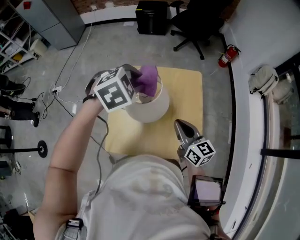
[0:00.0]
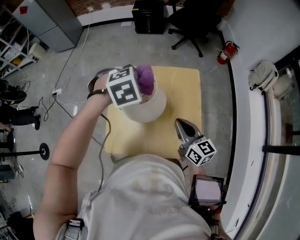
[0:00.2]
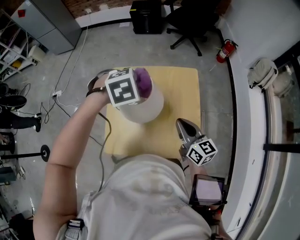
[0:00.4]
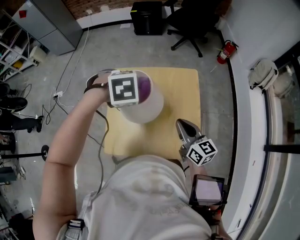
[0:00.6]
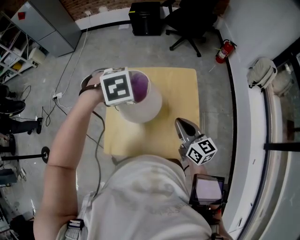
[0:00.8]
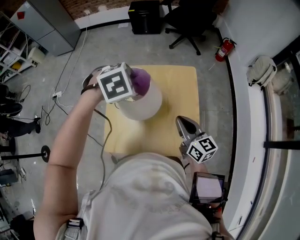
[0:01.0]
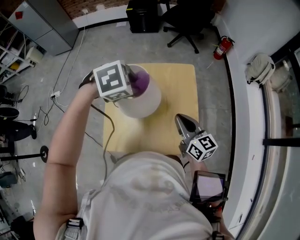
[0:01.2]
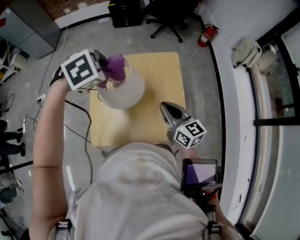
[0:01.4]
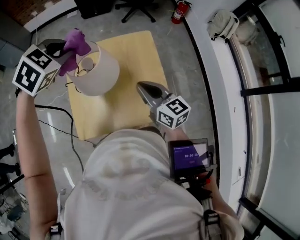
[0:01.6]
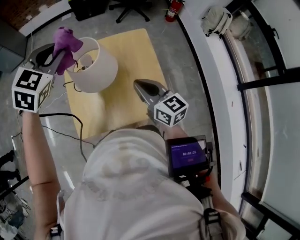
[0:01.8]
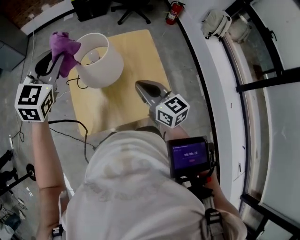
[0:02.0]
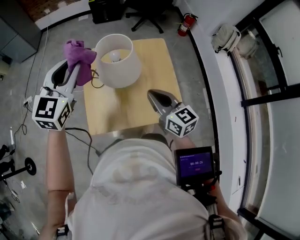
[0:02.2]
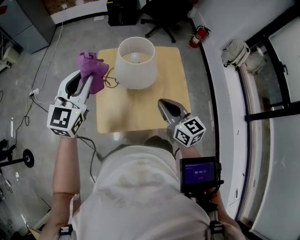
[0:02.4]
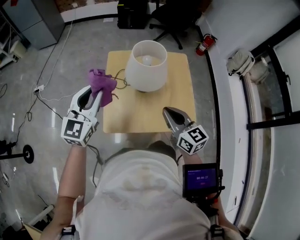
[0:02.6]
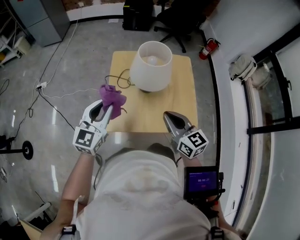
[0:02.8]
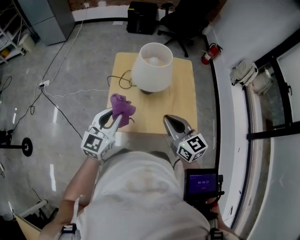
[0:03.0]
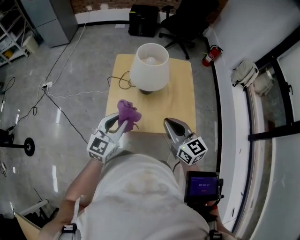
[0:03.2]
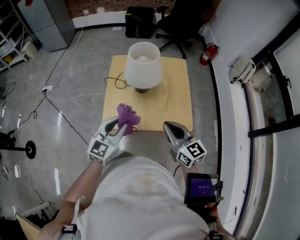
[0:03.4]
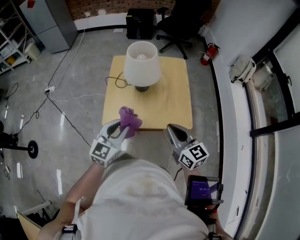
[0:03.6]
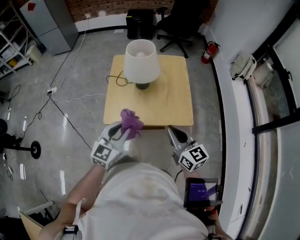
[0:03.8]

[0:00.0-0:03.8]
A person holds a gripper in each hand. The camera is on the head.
0:00.0 to 0:01.2: The left gripper turns by approximately 20 degrees.
0:01.2 to 0:02.6: The right gripper moves to the left and backward, roughly 15 cm. Meanwhile the left gripper is displaced to the left and backward by some 25 cm, and angles its fingers upward, by some 60 degrees.
0:02.6 to 0:03.8: The left gripper moves backward, to the right and downward, about 25 cm, while the right gripper moves backward, approximately 15 cm.

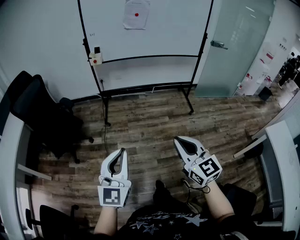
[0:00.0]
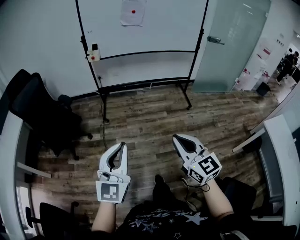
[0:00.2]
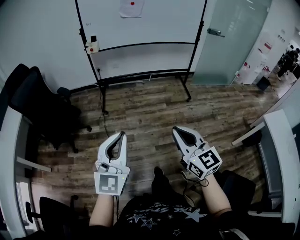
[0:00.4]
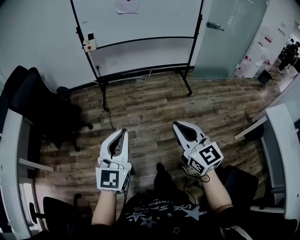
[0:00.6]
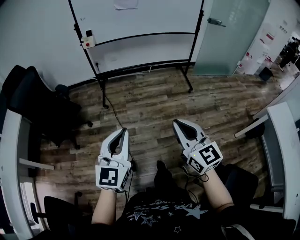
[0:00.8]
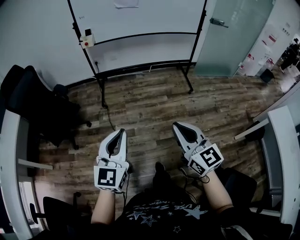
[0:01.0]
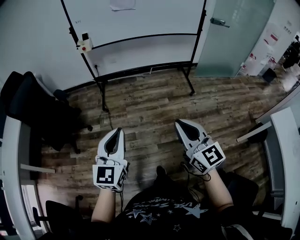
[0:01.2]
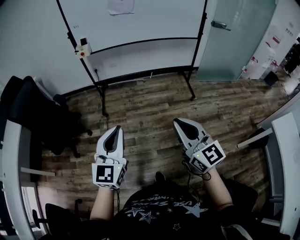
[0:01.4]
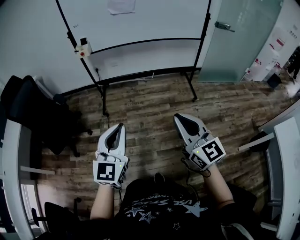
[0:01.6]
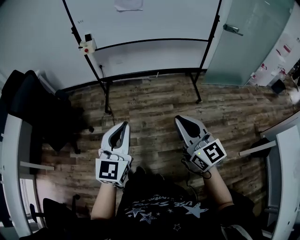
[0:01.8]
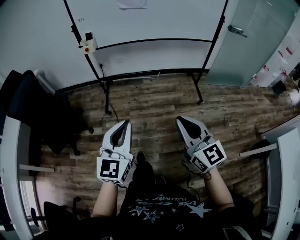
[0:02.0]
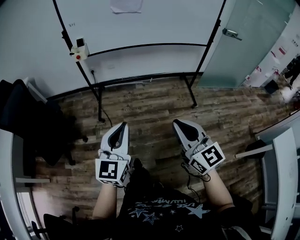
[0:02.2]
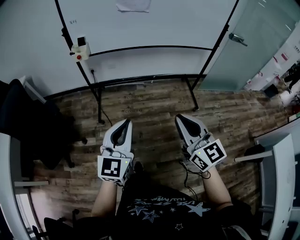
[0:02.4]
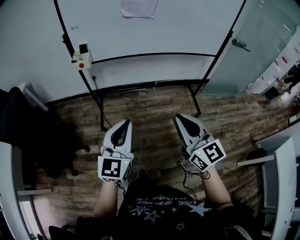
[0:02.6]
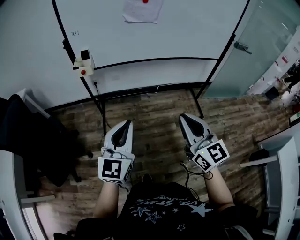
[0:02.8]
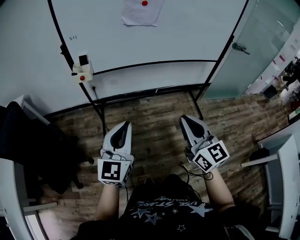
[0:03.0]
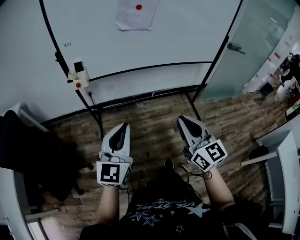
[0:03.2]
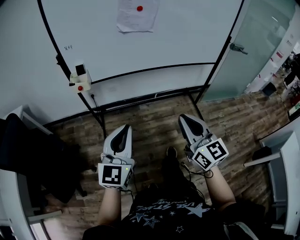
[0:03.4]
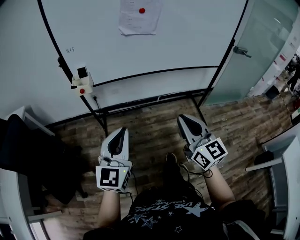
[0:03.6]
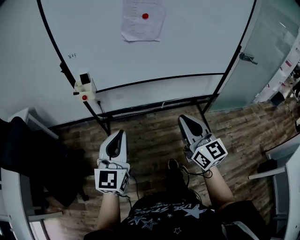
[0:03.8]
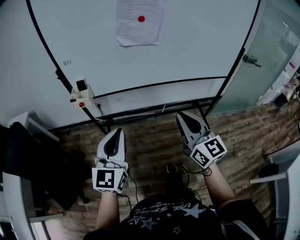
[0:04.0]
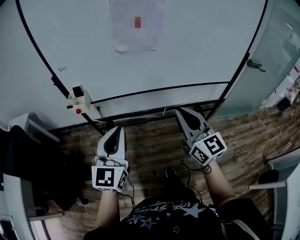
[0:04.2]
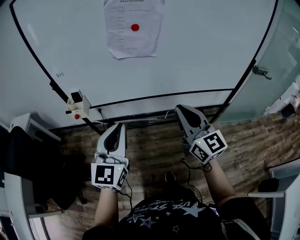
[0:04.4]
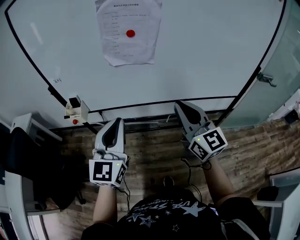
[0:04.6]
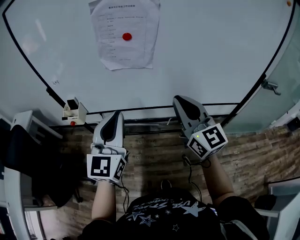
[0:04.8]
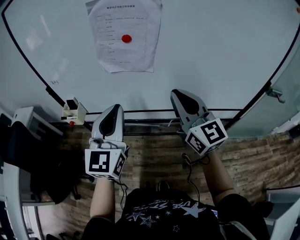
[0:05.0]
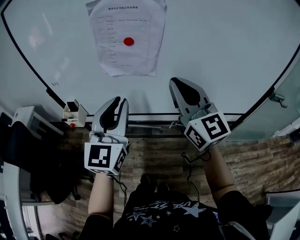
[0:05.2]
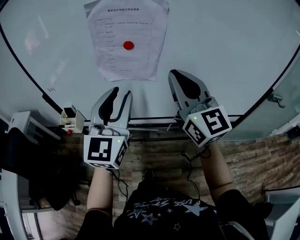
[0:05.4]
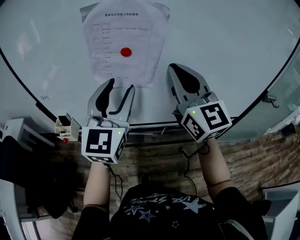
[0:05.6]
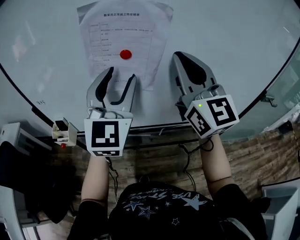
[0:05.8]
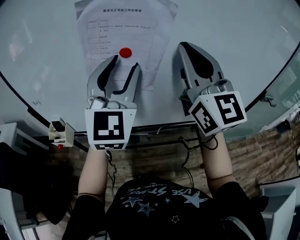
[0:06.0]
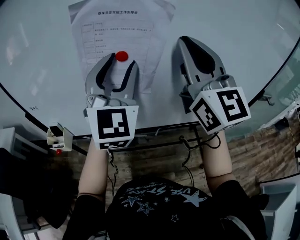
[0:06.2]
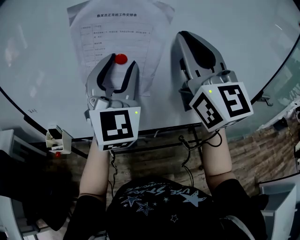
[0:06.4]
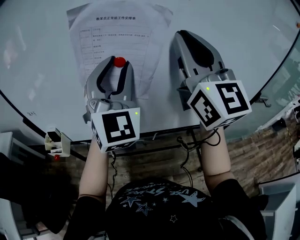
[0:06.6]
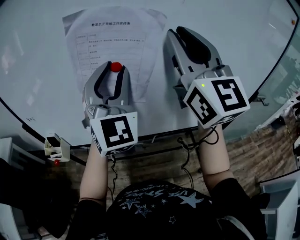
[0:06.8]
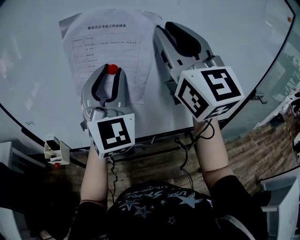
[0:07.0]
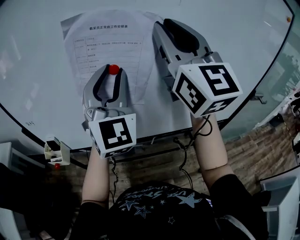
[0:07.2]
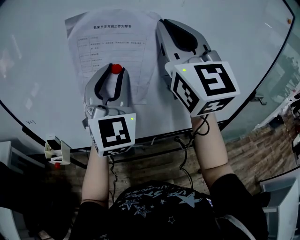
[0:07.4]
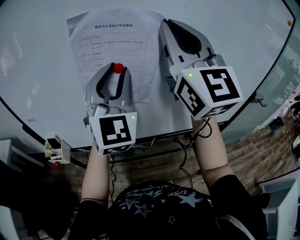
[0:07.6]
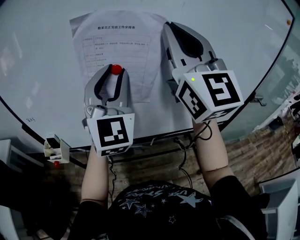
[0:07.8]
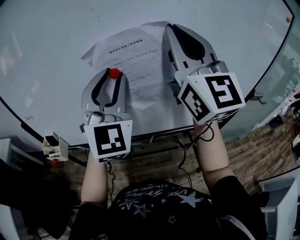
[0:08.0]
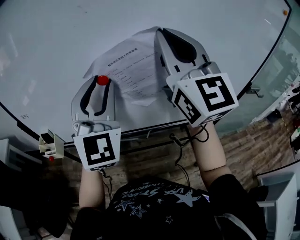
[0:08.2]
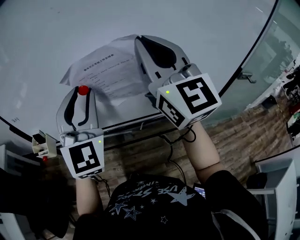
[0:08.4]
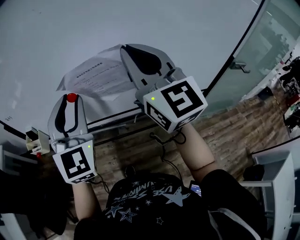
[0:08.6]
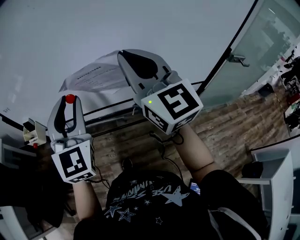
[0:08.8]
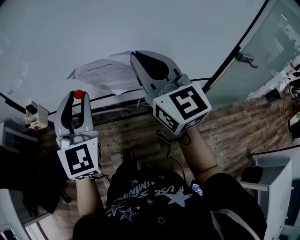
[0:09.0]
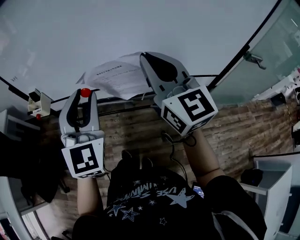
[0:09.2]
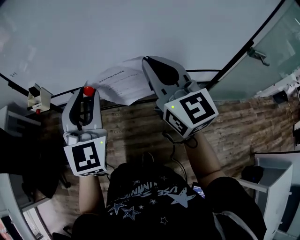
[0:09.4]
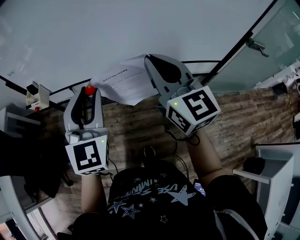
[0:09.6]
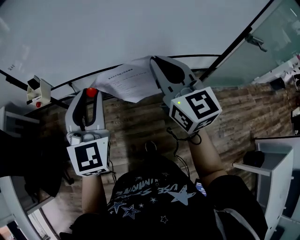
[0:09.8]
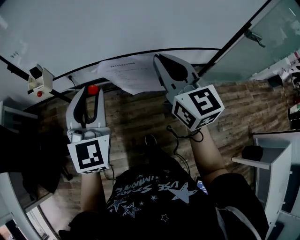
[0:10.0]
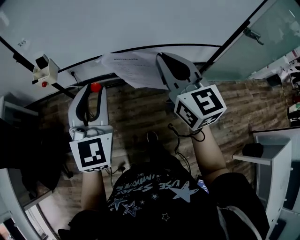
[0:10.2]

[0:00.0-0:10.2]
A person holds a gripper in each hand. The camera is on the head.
0:00.0 to 0:01.4: Both grippers travel together forward and to the right, about 15 cm.
0:01.4 to 0:03.0: The two grippers go roughly 35 cm forward.
0:03.0 to 0:04.4: The two grippers go approximately 25 cm forward.
0:04.4 to 0:05.8: The right gripper travels forward and upward by roughly 30 cm, while the left gripper moves forward, upward and to the right, roughly 30 cm, and opens its fingers.
0:05.8 to 0:07.2: The right gripper moves upward, roughly 10 cm. Meanwhile the left gripper ends up some 5 cm from where it was, and closes.
0:07.2 to 0:08.8: The left gripper heads backward and downward, covering approximately 15 cm. Meanwhile the right gripper shifts some 20 cm downward and backward.
0:08.8 to 0:10.2: The left gripper goes about 20 cm backward, to the left and downward. The right gripper heads backward, downward and to the left, covering roughly 20 cm.

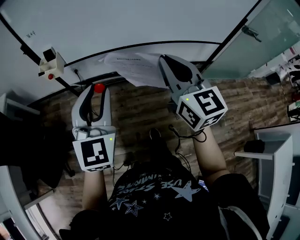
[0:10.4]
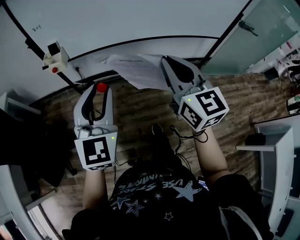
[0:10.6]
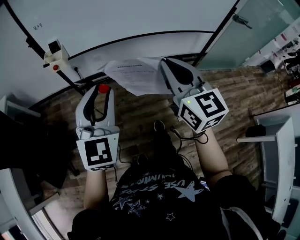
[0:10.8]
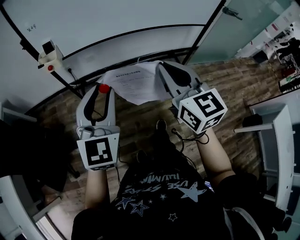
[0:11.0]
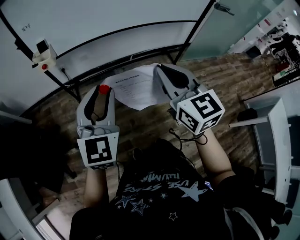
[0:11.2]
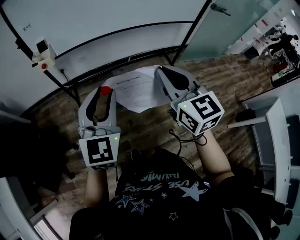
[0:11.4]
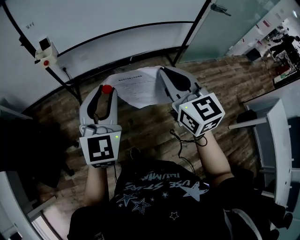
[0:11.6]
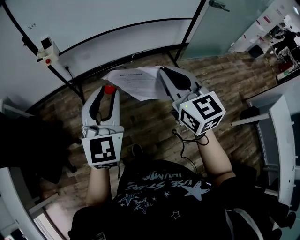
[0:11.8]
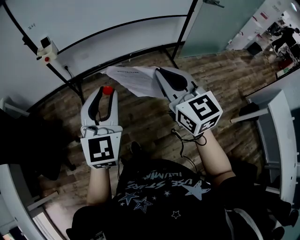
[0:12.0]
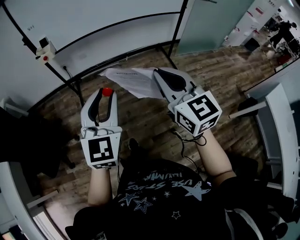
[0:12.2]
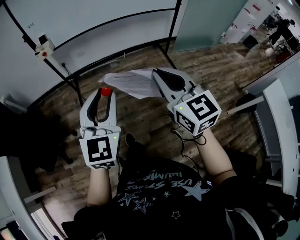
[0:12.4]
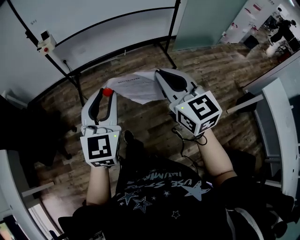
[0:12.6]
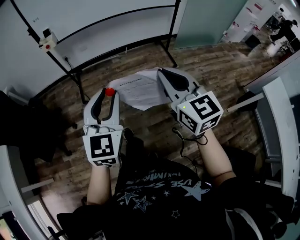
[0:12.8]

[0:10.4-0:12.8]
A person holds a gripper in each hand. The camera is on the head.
0:10.4 to 0:11.6: The two grippers go roughly 20 cm backward.
0:11.6 to 0:12.8: Both grippers travel together backward, approximately 25 cm.

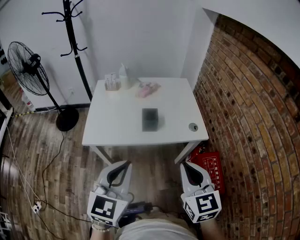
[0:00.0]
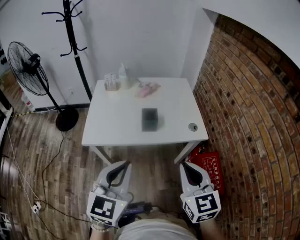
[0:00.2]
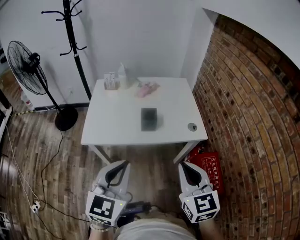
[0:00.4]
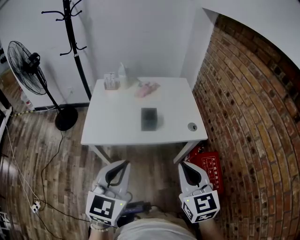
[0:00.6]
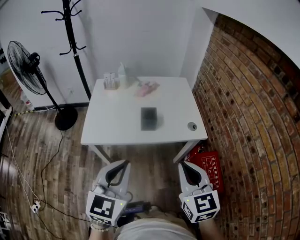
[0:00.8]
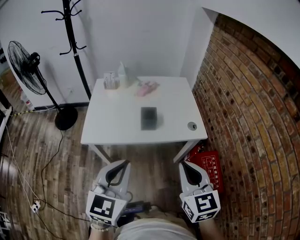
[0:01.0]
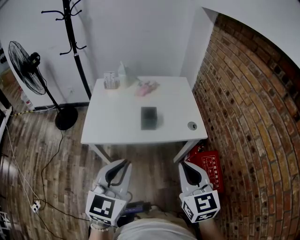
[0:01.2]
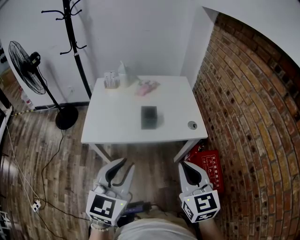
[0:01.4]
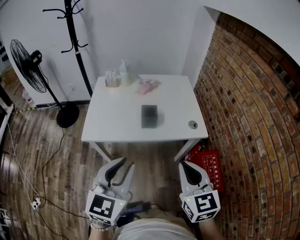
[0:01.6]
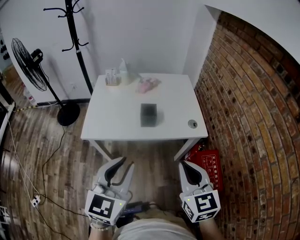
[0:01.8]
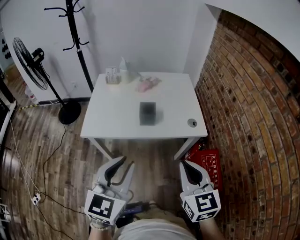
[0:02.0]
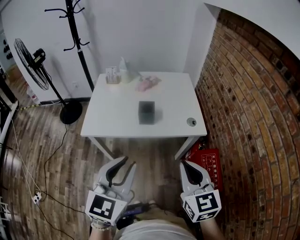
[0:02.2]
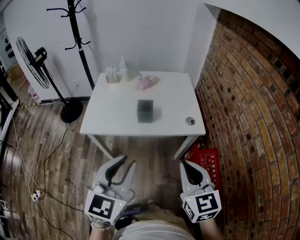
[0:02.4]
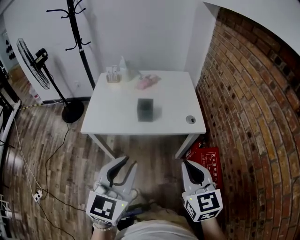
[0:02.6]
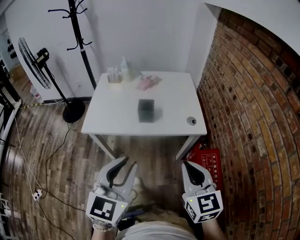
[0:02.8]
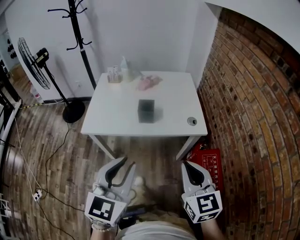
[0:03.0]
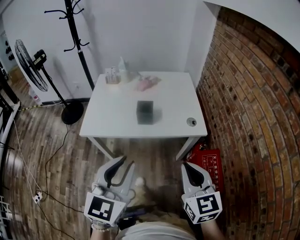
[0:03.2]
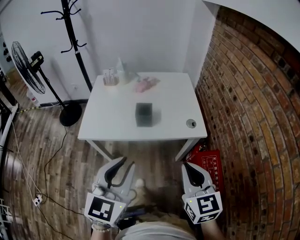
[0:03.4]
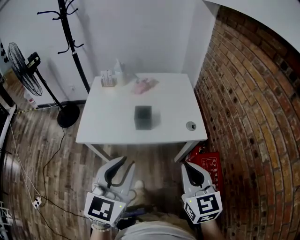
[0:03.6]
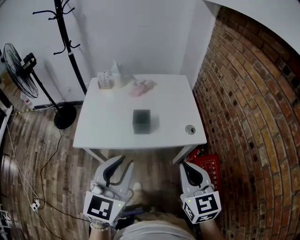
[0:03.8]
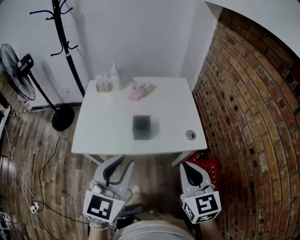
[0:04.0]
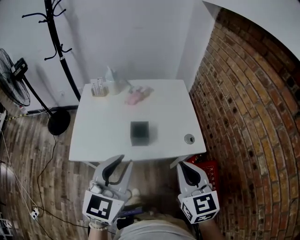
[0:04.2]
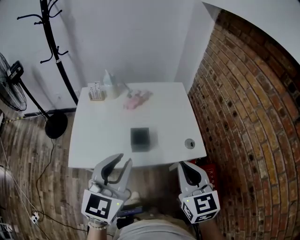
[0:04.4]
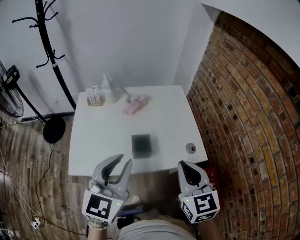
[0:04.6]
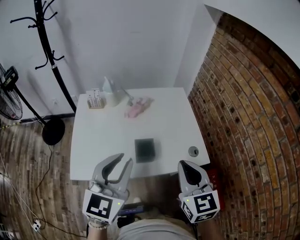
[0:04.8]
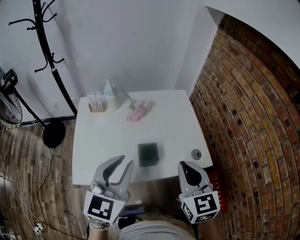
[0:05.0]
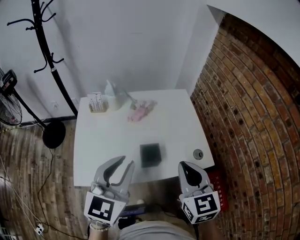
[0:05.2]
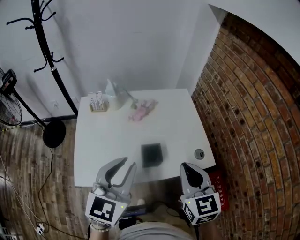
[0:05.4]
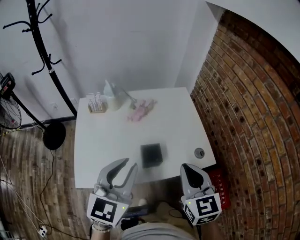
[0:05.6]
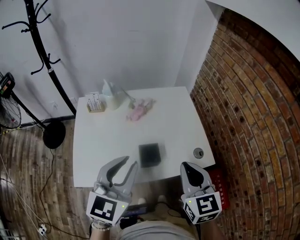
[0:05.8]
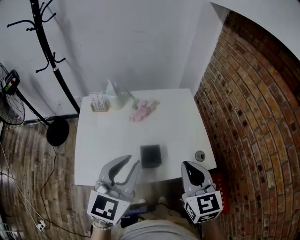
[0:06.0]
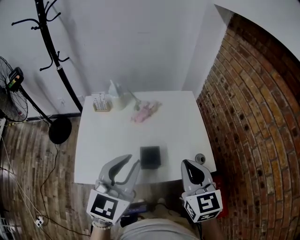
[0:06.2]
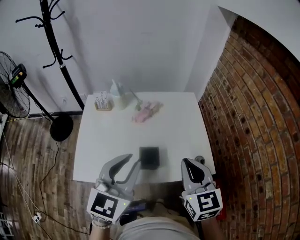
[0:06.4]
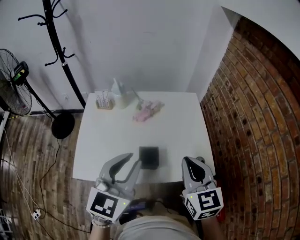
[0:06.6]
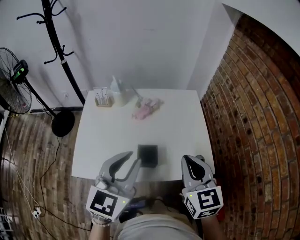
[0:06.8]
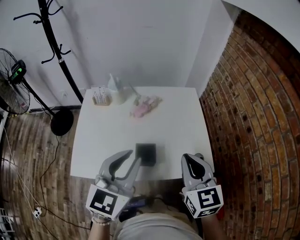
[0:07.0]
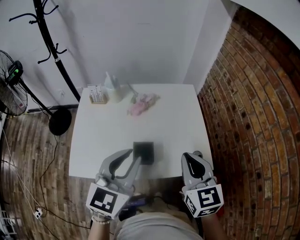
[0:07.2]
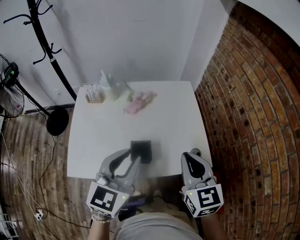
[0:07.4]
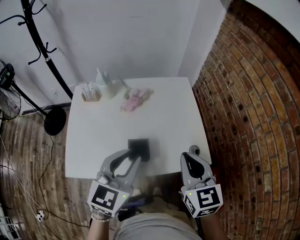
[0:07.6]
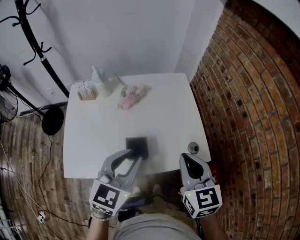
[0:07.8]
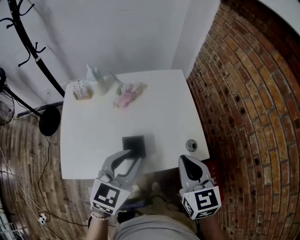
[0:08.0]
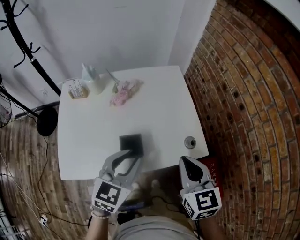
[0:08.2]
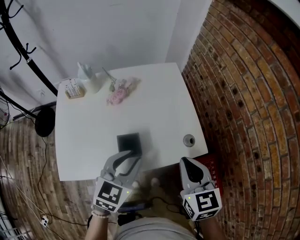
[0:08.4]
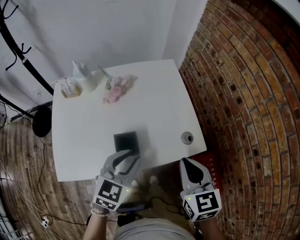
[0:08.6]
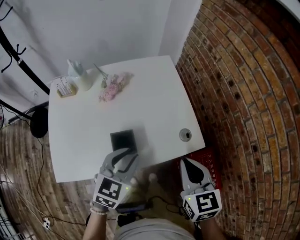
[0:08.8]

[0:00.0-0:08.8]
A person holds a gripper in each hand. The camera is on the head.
0:00.0 to 0:01.4: Both grippers stay about where they are.
0:01.4 to 0:03.0: The two grippers go approximately 5 cm to the right.
0:03.0 to 0:04.4: The two grippers go approximately 20 cm forward.
0:04.4 to 0:05.8: The grippers both shift forward by about 10 cm.
0:05.8 to 0:07.4: The left gripper shifts about 5 cm to the right. Meanwhile the right gripper ends up approximately 5 cm from where it was.
0:07.4 to 0:08.8: The right gripper is displaced downward and to the right by approximately 10 cm, while the left gripper is displaced downward by some 10 cm, and rotates some 20 degrees.
